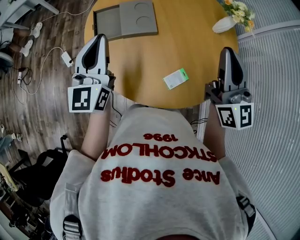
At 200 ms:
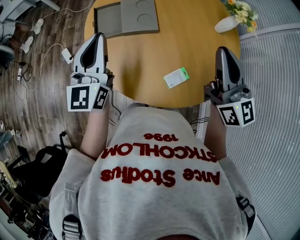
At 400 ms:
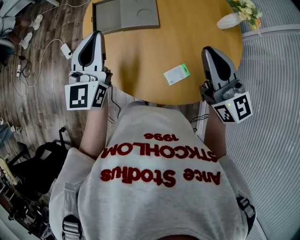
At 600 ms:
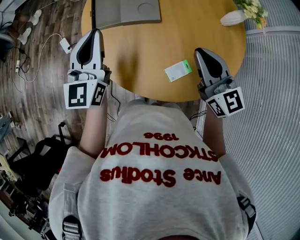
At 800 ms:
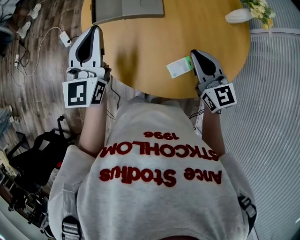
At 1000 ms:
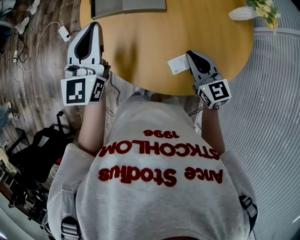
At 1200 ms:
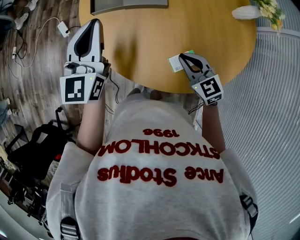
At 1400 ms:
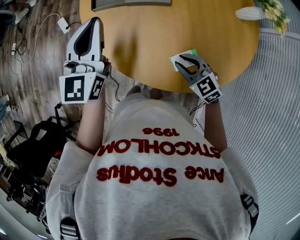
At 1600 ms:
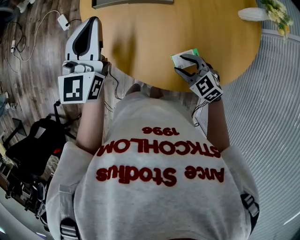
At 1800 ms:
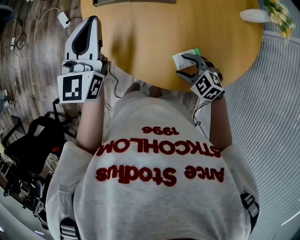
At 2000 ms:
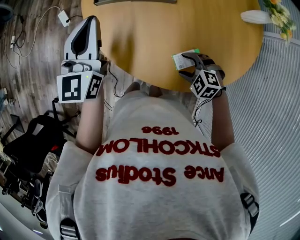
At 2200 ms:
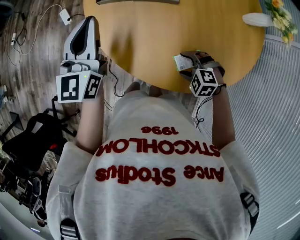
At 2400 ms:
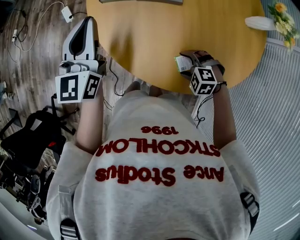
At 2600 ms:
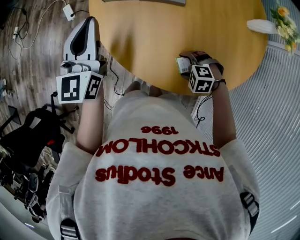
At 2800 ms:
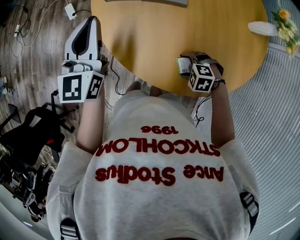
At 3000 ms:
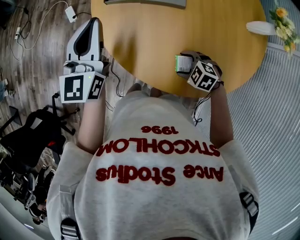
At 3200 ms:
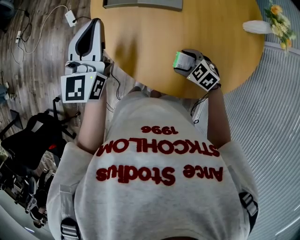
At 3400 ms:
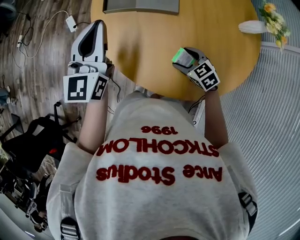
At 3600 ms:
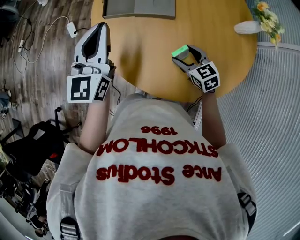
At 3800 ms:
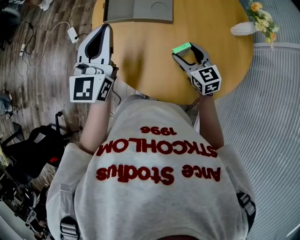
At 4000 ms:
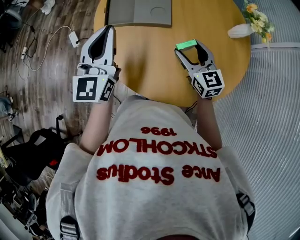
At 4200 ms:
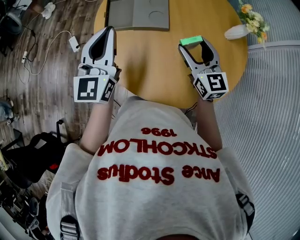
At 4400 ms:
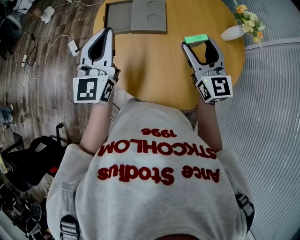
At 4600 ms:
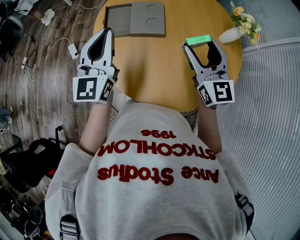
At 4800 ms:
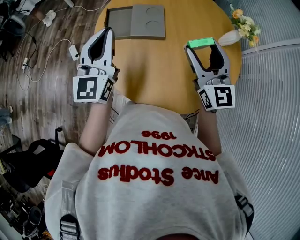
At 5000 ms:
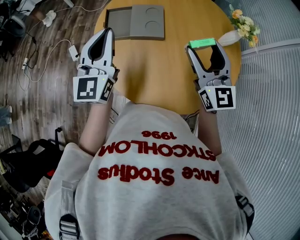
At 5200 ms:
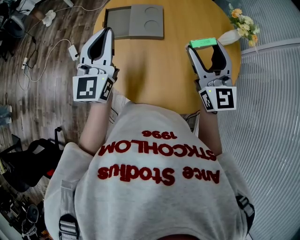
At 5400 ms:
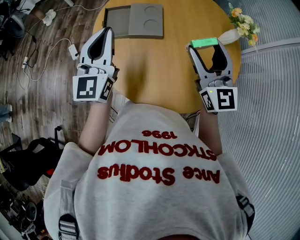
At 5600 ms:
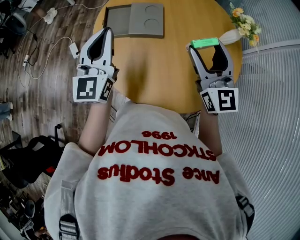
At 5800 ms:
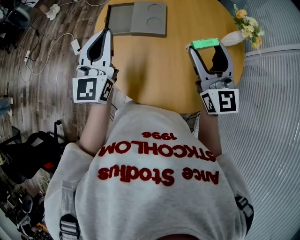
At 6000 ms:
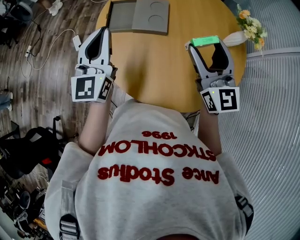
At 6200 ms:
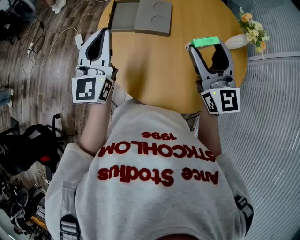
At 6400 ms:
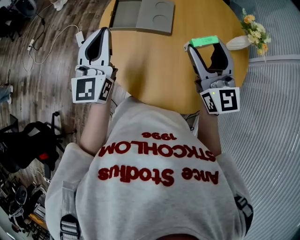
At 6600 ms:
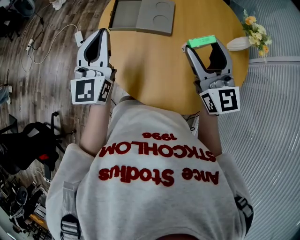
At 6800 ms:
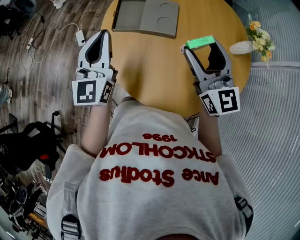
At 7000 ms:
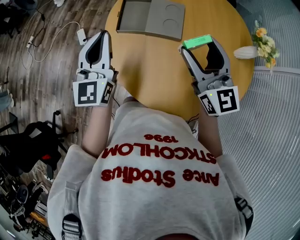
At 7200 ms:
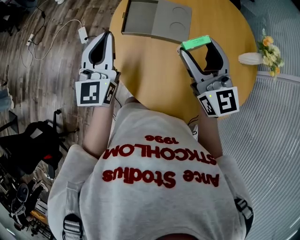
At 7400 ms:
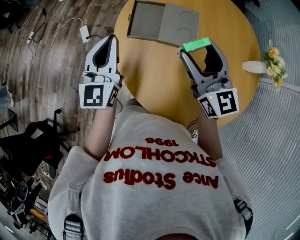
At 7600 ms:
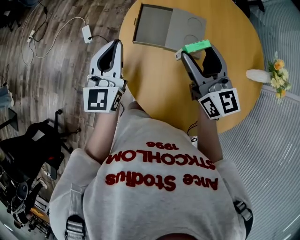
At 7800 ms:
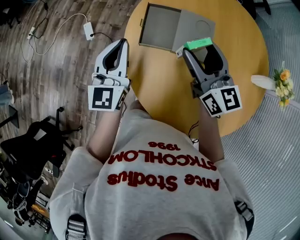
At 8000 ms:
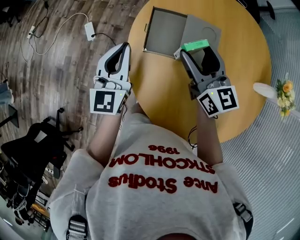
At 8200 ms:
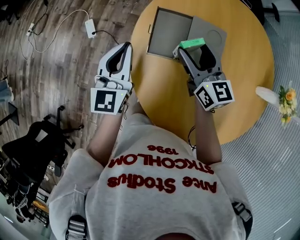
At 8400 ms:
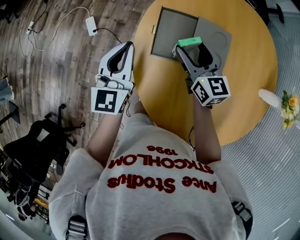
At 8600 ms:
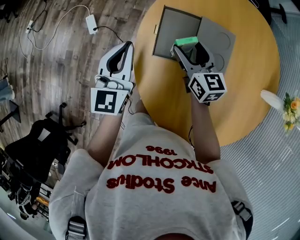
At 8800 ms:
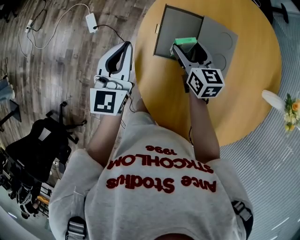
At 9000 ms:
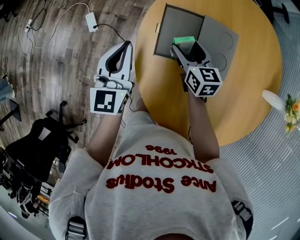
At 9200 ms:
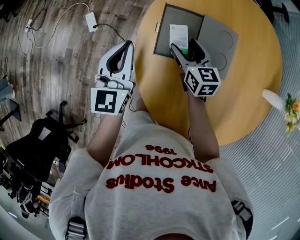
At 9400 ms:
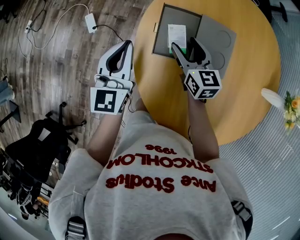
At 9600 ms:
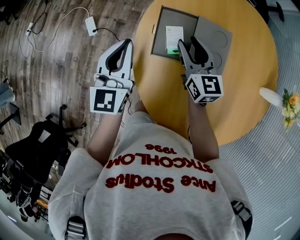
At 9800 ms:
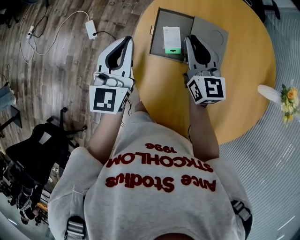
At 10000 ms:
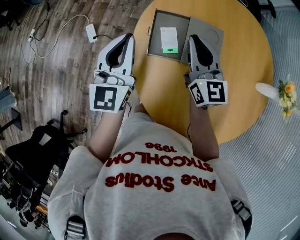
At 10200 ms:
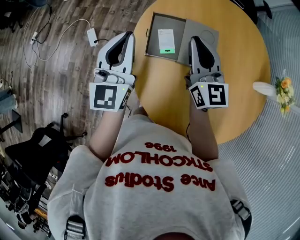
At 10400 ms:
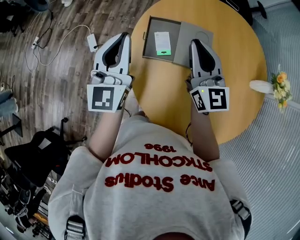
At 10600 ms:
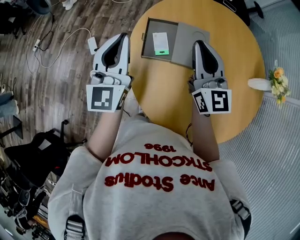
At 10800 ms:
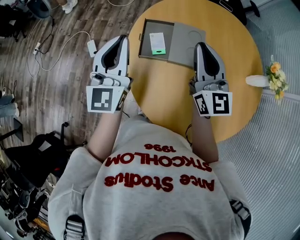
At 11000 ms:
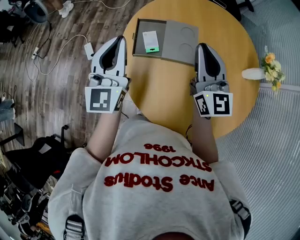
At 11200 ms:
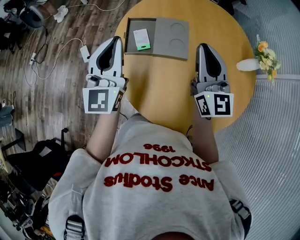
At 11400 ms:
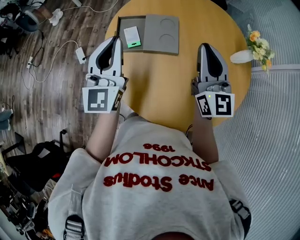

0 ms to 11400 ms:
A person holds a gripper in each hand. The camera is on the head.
0 ms to 1400 ms: The left gripper moves downward, approximately 10 cm; the right gripper goes roughly 35 cm downward, and points its fingers roughly 50 degrees further downward.
1400 ms to 2800 ms: The right gripper shifts roughly 10 cm downward, tilts its fingers some 30 degrees downward, and opens.
2800 ms to 4200 ms: The left gripper travels upward by roughly 10 cm, while the right gripper travels upward by about 30 cm, and angles its fingers upward, by roughly 60 degrees.
4200 ms to 5600 ms: The right gripper heads upward, covering about 10 cm.
5600 ms to 7200 ms: The right gripper goes roughly 15 cm to the left and forward. Meanwhile the left gripper shifts roughly 5 cm to the left.
7200 ms to 8600 ms: The left gripper is displaced forward, downward and to the left by roughly 20 cm. The right gripper is displaced downward, forward and to the left by roughly 30 cm, and turns by roughly 30 degrees.
8600 ms to 10000 ms: The right gripper travels upward by about 10 cm, changes its angle by approximately 20 degrees, and closes its fingers. The left gripper moves upward, about 5 cm.
10000 ms to 11400 ms: Both grippers travel together to the right, backward and upward, roughly 20 cm.

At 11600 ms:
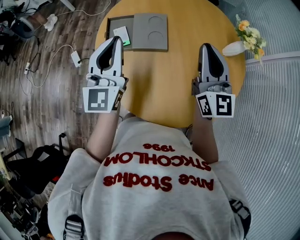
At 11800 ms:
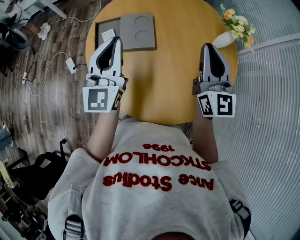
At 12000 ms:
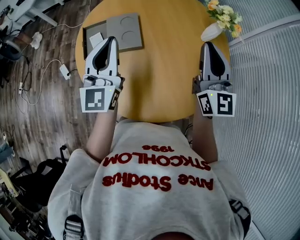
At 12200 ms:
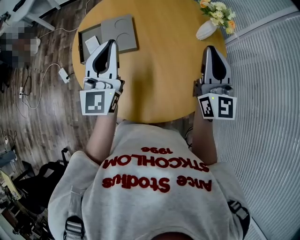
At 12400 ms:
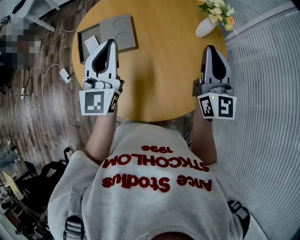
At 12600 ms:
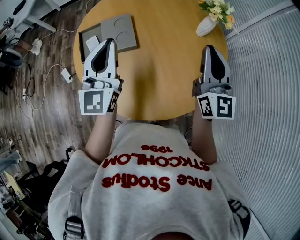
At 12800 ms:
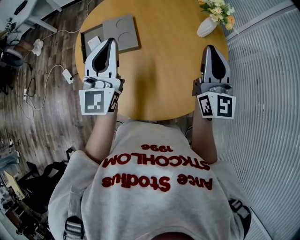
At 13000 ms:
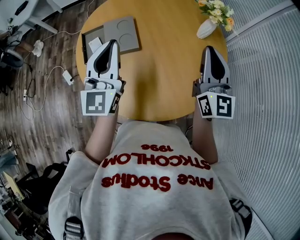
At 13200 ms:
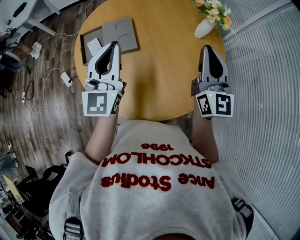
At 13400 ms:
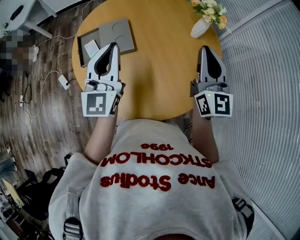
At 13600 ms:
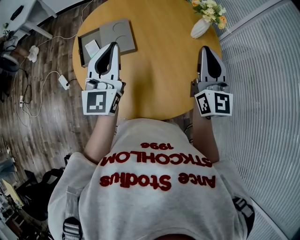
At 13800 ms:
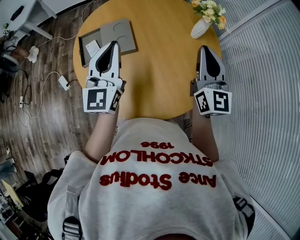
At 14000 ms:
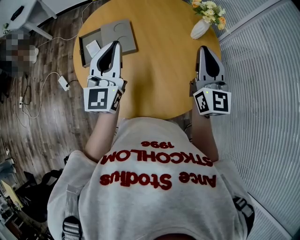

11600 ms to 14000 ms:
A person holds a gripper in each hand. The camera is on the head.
11600 ms to 12800 ms: The right gripper moves to the right and backward, approximately 15 cm. Meanwhile the left gripper travels to the right by approximately 10 cm.
12800 ms to 14000 ms: There are only small adjustments of the grippers.

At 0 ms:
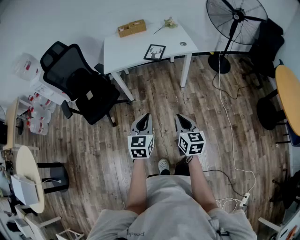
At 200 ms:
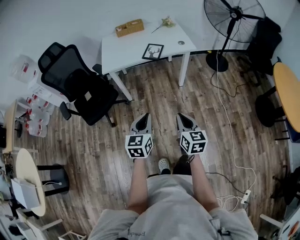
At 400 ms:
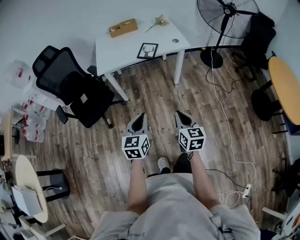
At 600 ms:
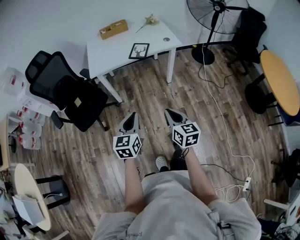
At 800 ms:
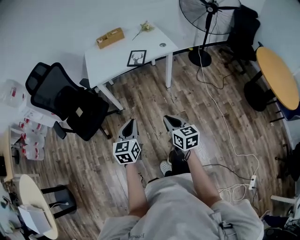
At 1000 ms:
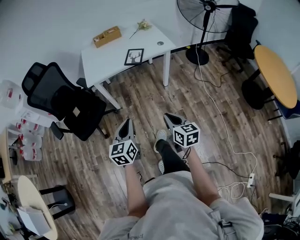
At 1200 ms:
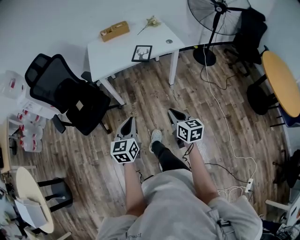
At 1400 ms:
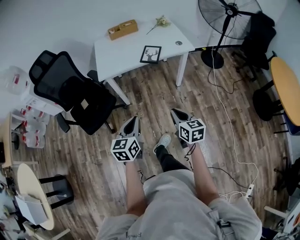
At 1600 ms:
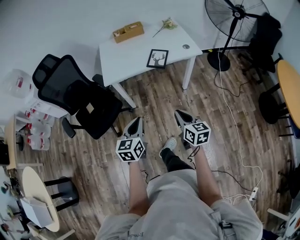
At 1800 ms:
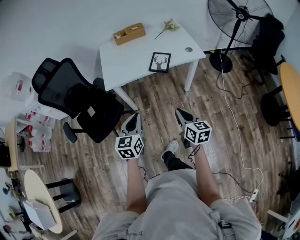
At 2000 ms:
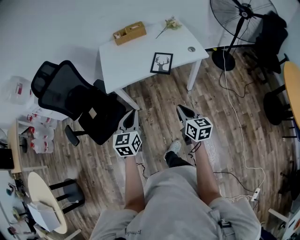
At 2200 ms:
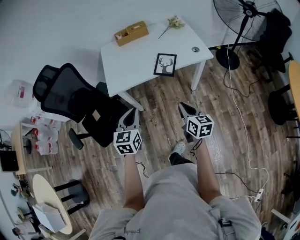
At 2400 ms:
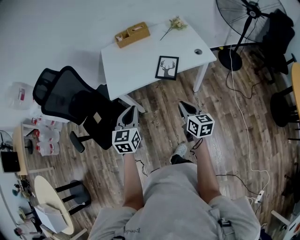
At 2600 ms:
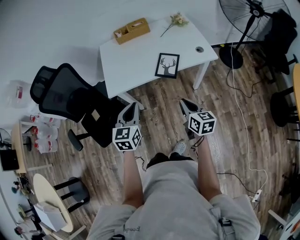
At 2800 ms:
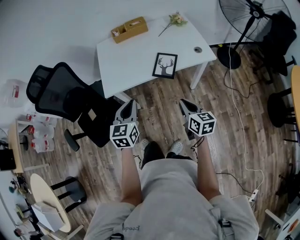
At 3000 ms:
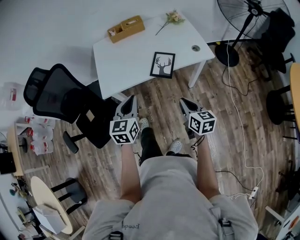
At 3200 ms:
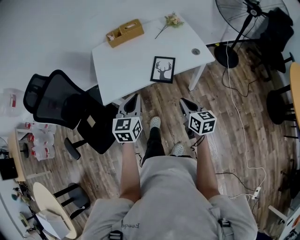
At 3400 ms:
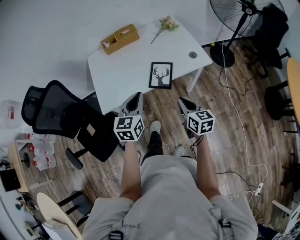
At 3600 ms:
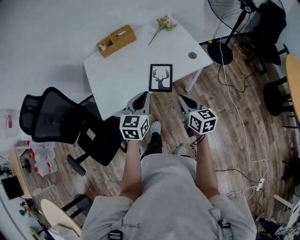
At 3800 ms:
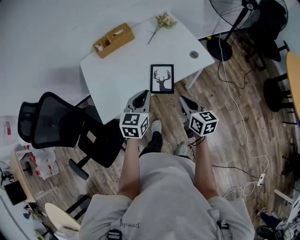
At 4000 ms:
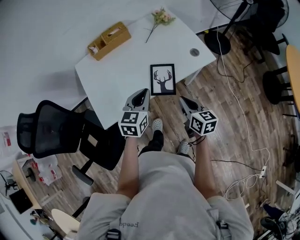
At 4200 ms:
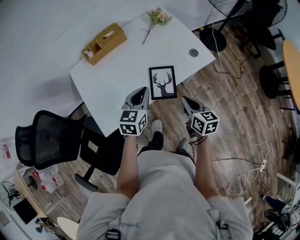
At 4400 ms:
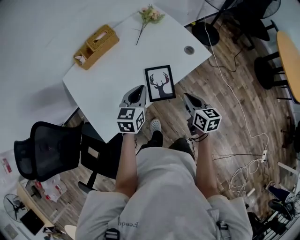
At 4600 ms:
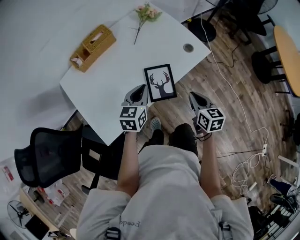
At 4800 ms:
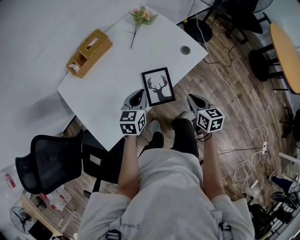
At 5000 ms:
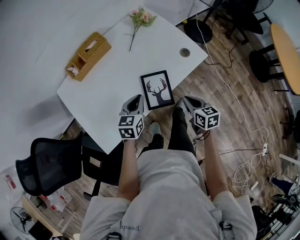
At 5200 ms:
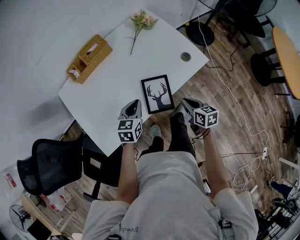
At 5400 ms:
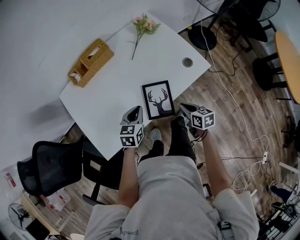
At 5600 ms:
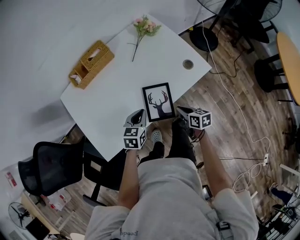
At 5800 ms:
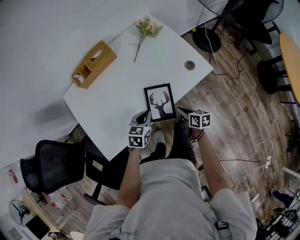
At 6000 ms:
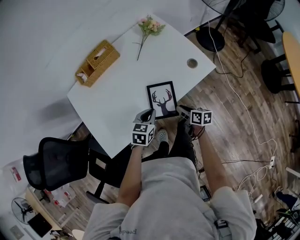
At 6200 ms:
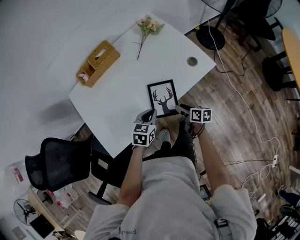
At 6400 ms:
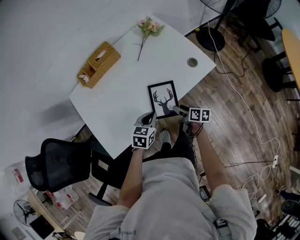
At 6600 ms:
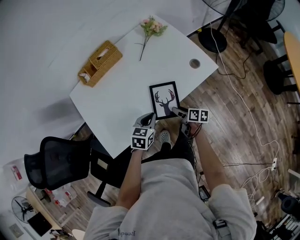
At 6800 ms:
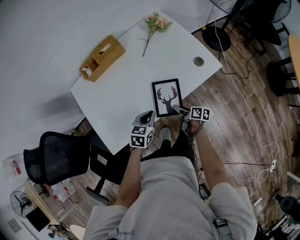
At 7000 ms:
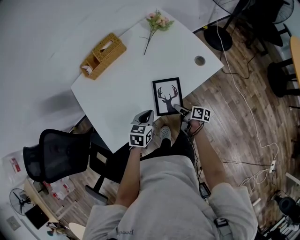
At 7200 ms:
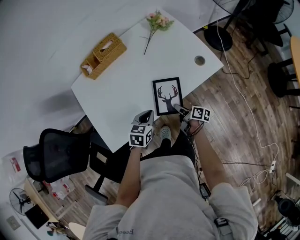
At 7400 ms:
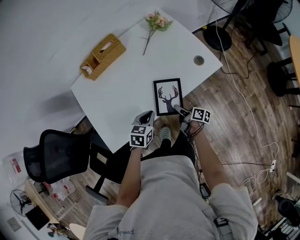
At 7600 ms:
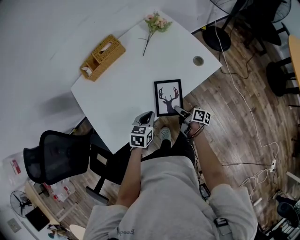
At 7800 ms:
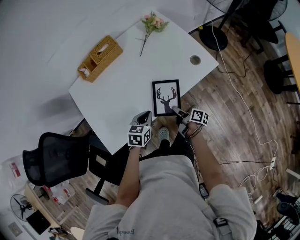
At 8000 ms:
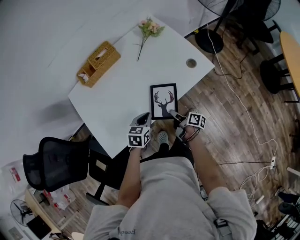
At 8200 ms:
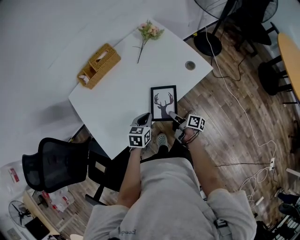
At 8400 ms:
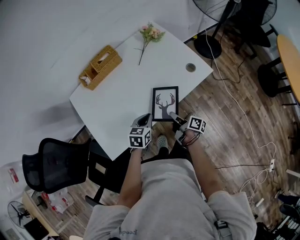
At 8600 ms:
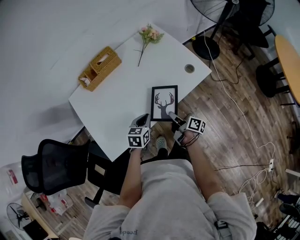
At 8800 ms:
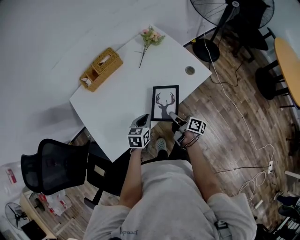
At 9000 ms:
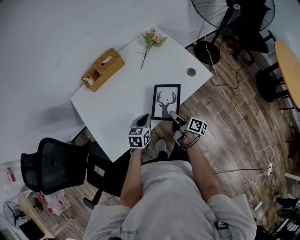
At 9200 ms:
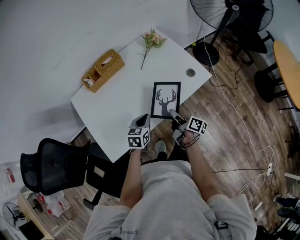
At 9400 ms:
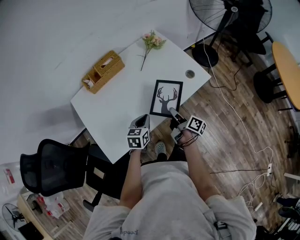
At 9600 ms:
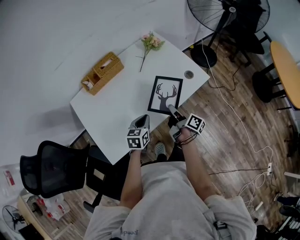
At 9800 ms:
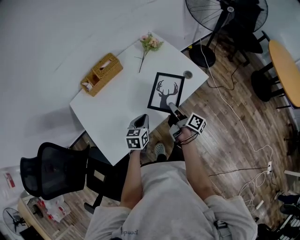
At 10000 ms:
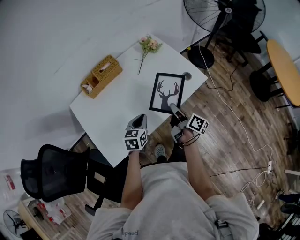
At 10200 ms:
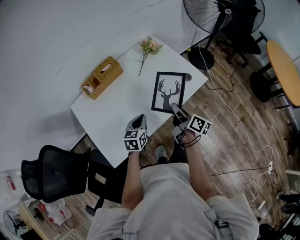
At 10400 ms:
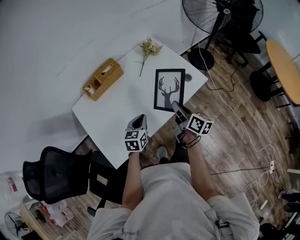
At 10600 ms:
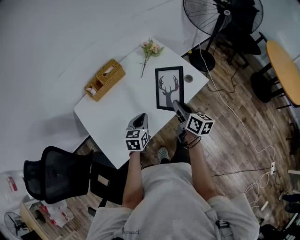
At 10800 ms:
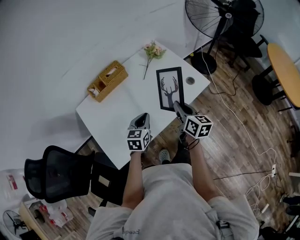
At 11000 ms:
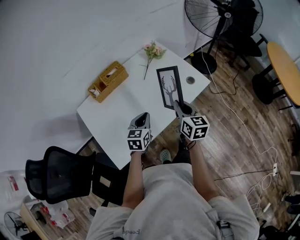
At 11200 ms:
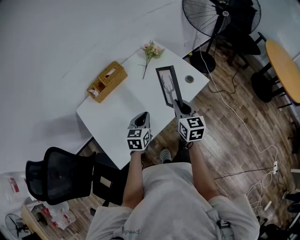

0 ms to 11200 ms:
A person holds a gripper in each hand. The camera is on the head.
0 ms to 1600 ms: The right gripper heads forward and to the left, covering some 15 cm. The left gripper travels to the left and forward by roughly 15 cm.
1600 ms to 3200 ms: Both grippers travel together forward, approximately 30 cm.
3200 ms to 4800 ms: The right gripper shifts by roughly 15 cm, and changes its angle by roughly 20 degrees, while the left gripper moves about 25 cm, and changes its angle by about 30 degrees.
4800 ms to 6400 ms: The left gripper heads downward, covering about 5 cm. Meanwhile the right gripper heads downward, covering some 15 cm, swivels approximately 40 degrees, and opens.
6400 ms to 8000 ms: The right gripper changes its angle by approximately 30 degrees, and closes up.
8000 ms to 9600 ms: The left gripper changes place by approximately 5 cm; the right gripper goes about 15 cm upward, and rotates roughly 20 degrees.
9600 ms to 11200 ms: The right gripper travels upward by approximately 15 cm, and rotates around the line of its fingers by approximately 70 degrees, counterclockwise from behind. Meanwhile the left gripper shifts some 5 cm upward.
